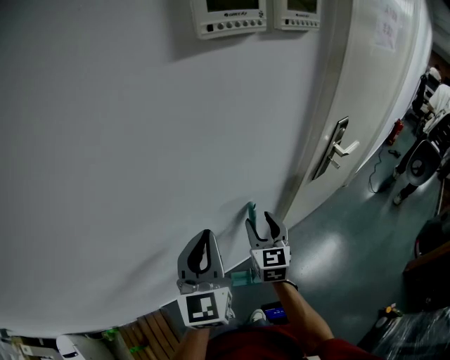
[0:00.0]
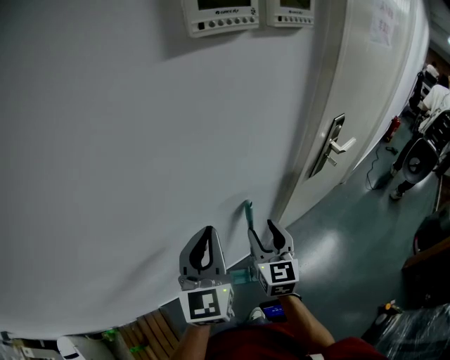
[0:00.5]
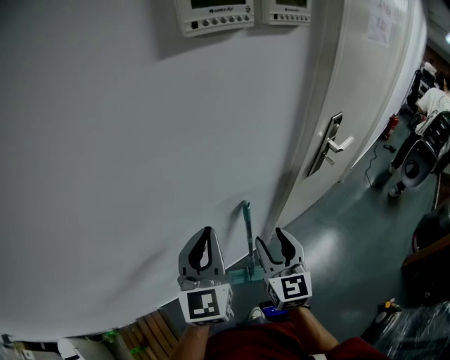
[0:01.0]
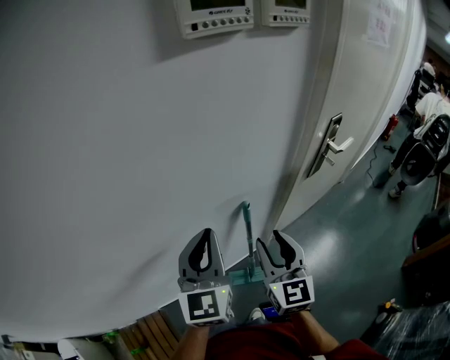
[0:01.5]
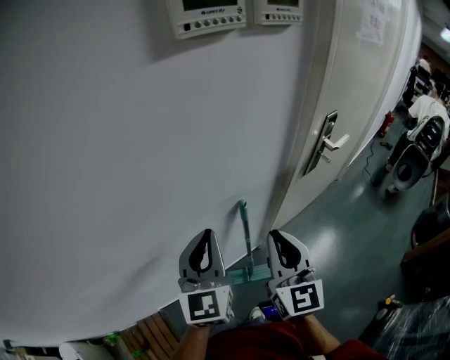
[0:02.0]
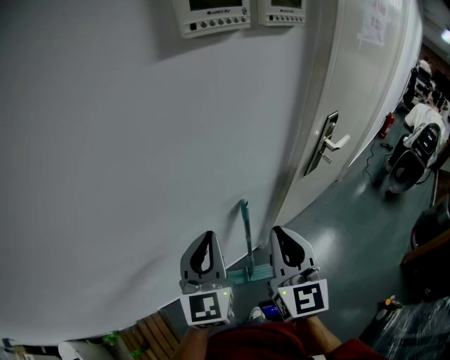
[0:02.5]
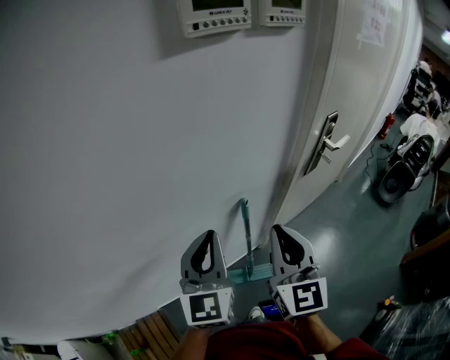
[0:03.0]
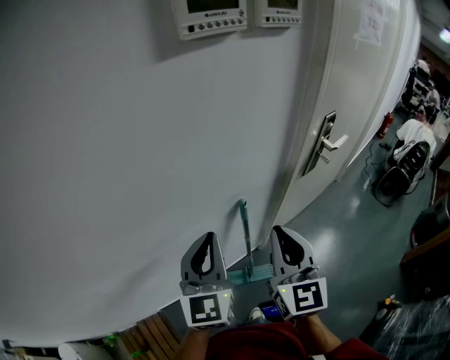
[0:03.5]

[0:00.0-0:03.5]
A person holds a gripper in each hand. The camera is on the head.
0:00.0 to 0:02.0: The right gripper goes approximately 15 cm upward and backward, and closes its fingers.
0:02.0 to 0:03.5: There are only small adjustments of the grippers.

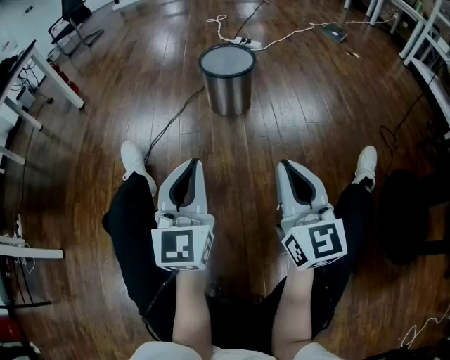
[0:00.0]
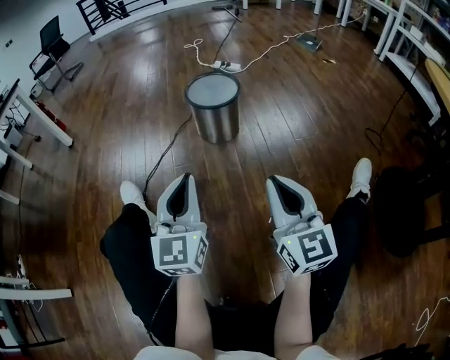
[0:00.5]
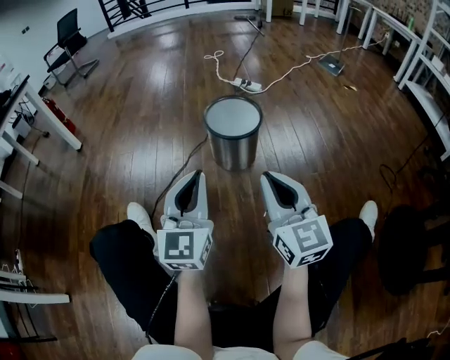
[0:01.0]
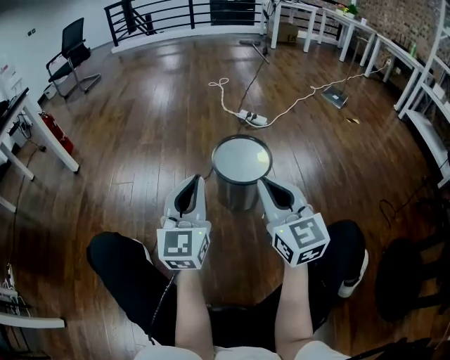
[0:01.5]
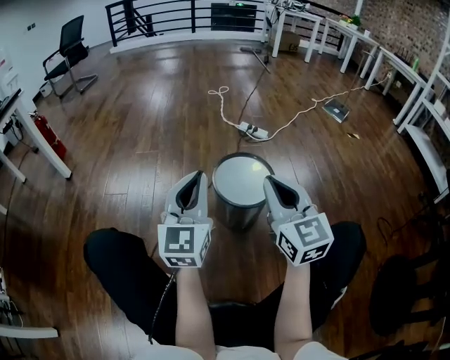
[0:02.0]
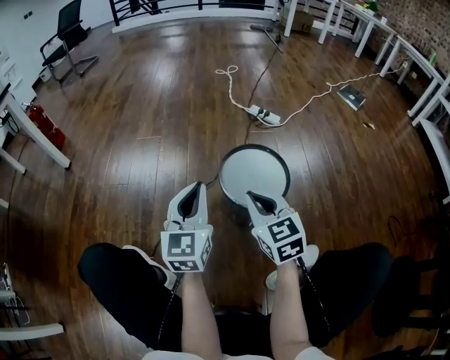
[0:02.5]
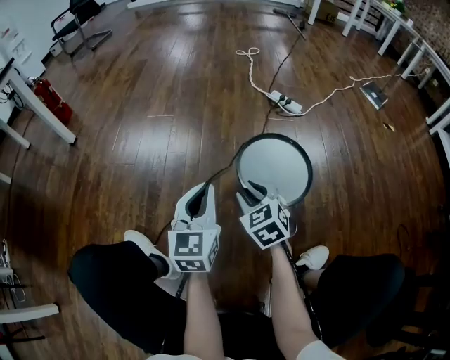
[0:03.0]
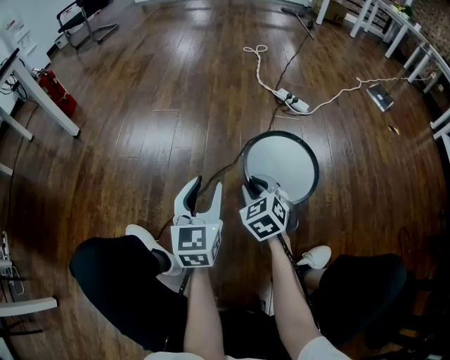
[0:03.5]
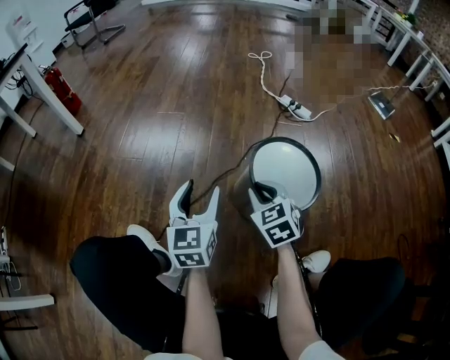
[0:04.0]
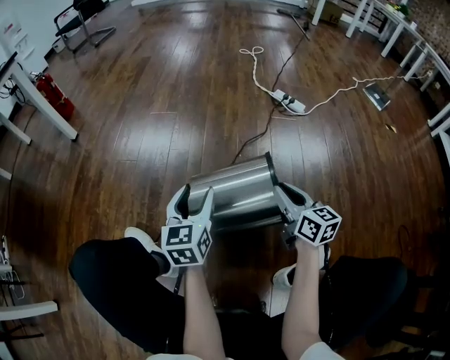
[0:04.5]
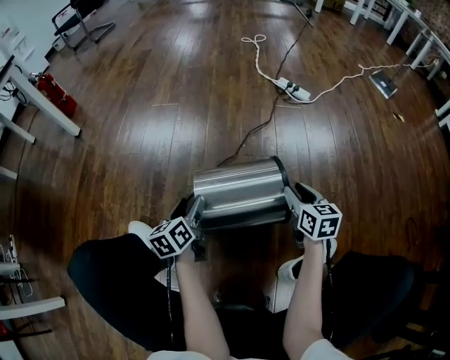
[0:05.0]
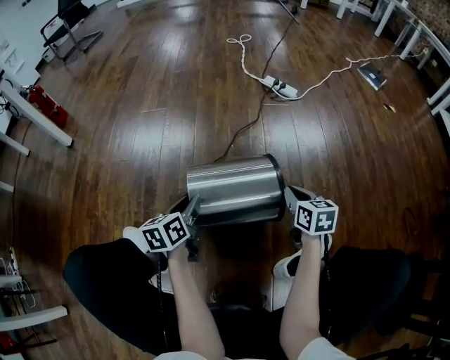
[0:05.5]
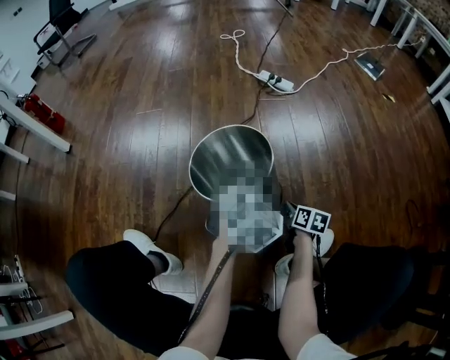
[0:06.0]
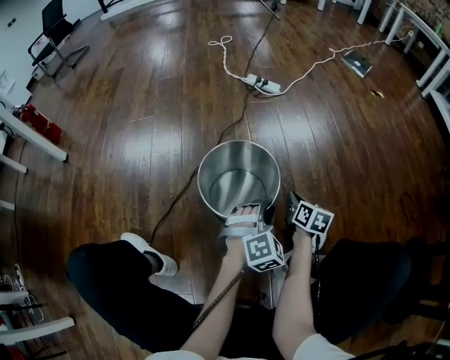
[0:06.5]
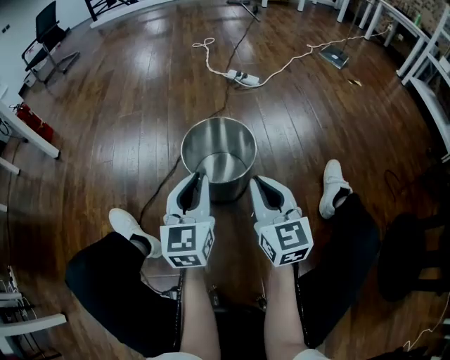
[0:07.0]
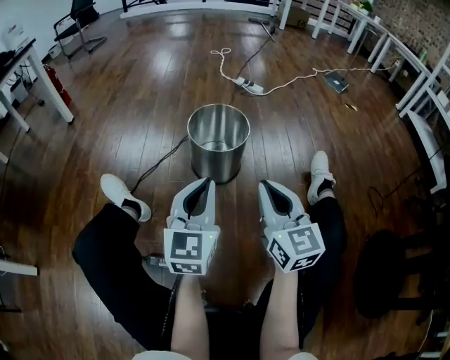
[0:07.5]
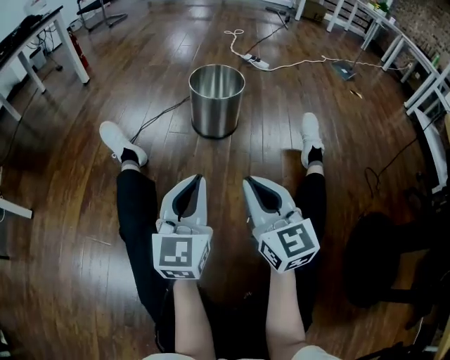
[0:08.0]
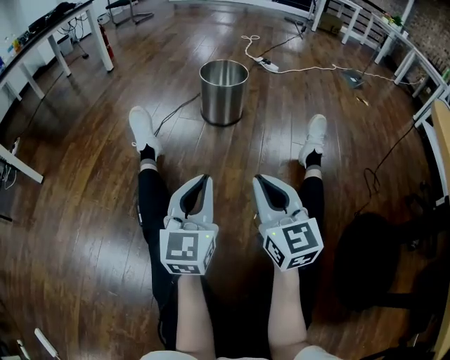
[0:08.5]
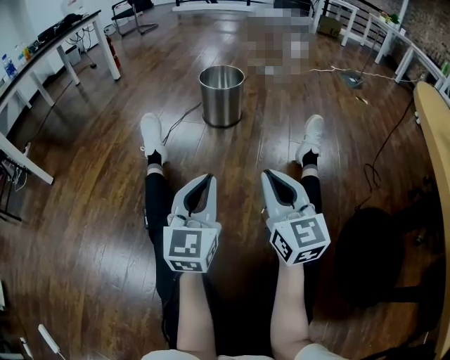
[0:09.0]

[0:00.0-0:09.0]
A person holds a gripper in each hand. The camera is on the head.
0:00.0 to 0:02.0: The two grippers go approximately 40 cm forward.
0:02.0 to 0:04.5: Both grippers move downward, roughly 20 cm. The left gripper turns by about 30 degrees, and opens. The right gripper rotates about 40 degrees.
0:04.5 to 0:07.0: The right gripper travels backward by approximately 15 cm, moves some 20 cm downward and comes back, and turns by some 30 degrees; the left gripper shifts some 20 cm to the right, backward and upward, and closes its fingers.
0:07.0 to 0:09.0: The two grippers travel together, backward, some 50 cm. The right gripper rotates some 20 degrees.

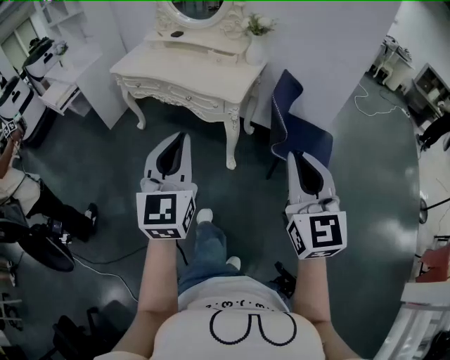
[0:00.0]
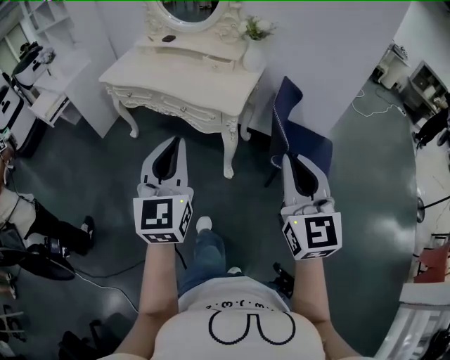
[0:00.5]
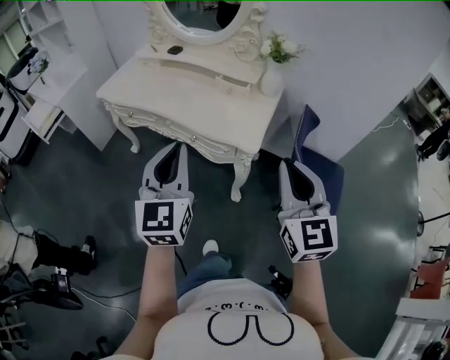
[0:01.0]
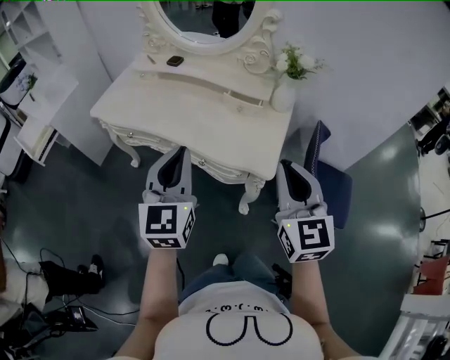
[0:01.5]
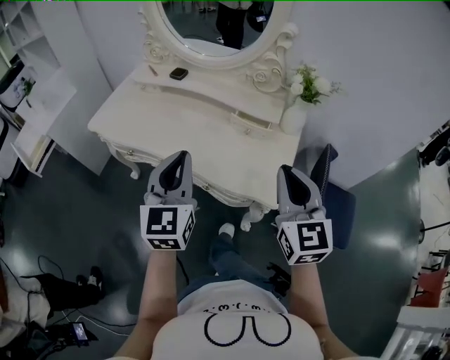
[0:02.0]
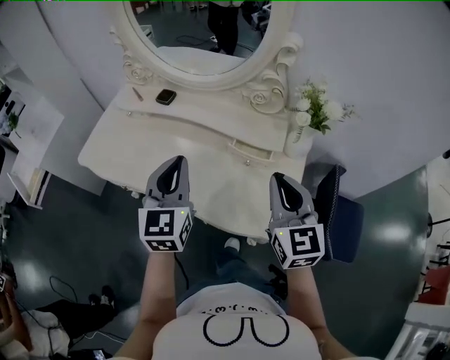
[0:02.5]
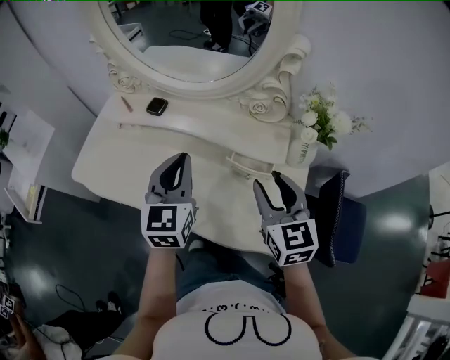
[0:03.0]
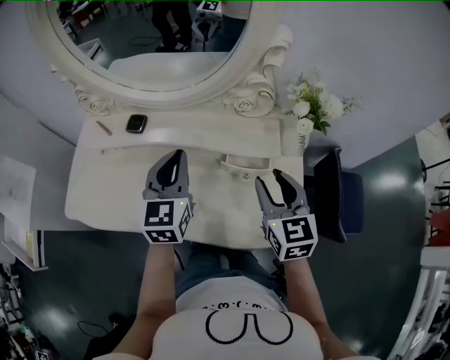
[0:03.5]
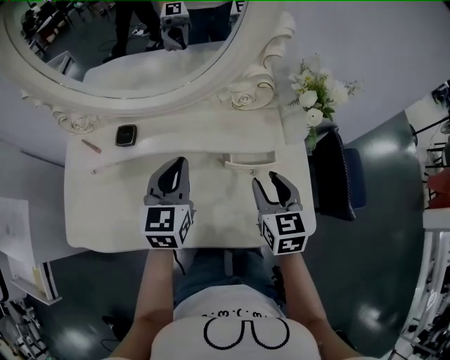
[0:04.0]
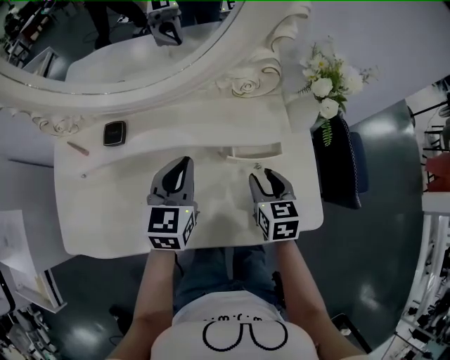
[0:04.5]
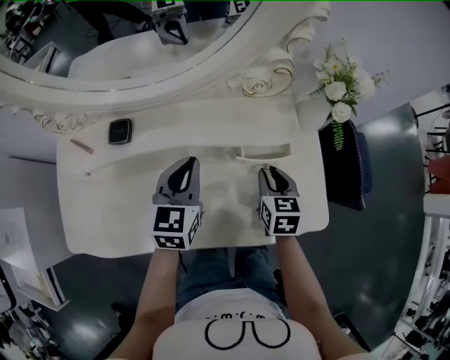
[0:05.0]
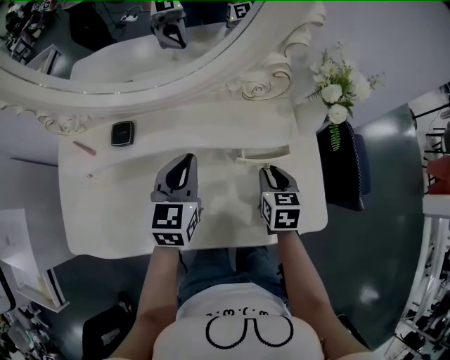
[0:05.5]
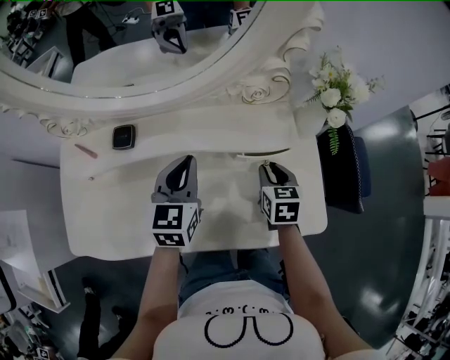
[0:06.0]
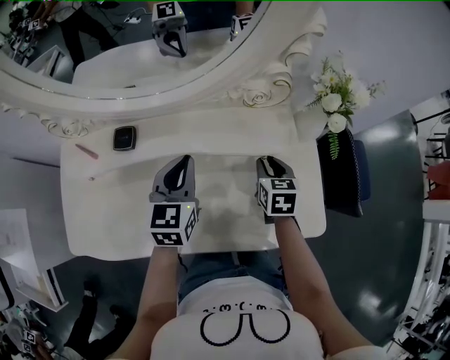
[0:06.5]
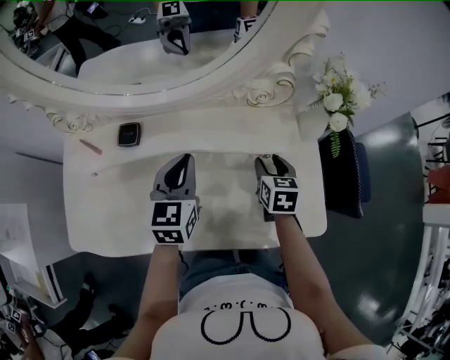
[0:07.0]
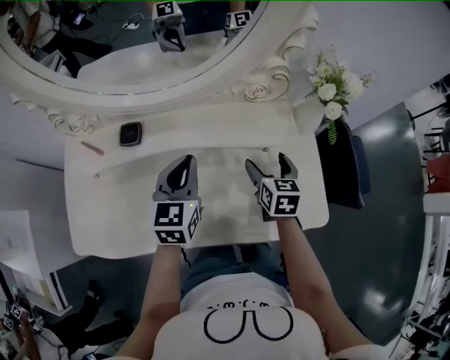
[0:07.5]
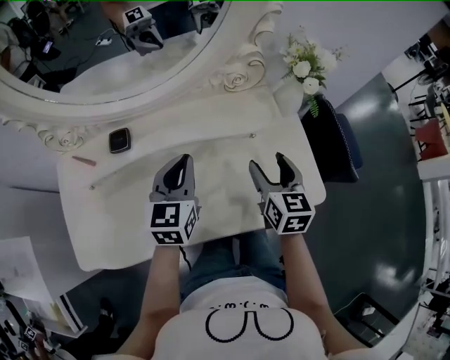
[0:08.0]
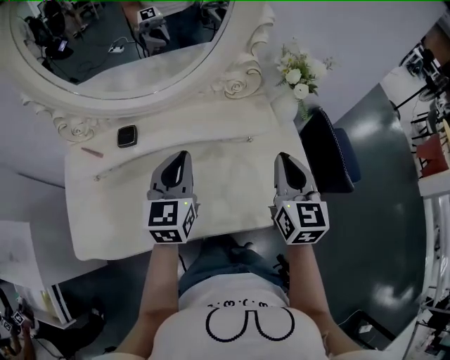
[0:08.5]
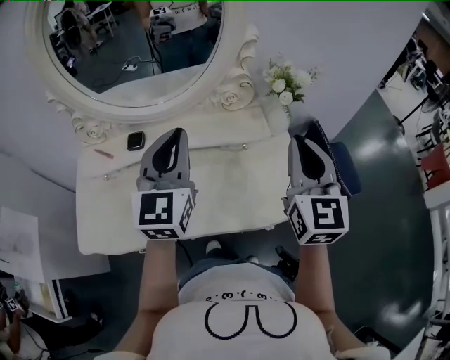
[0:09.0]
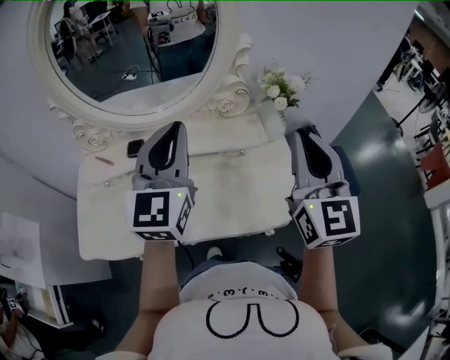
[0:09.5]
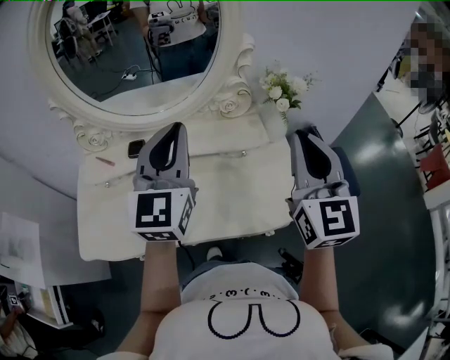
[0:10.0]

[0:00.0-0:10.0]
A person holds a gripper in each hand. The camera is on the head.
0:00.0 to 0:02.0: Both grippers are carried forward, some 50 cm.
0:02.0 to 0:04.0: The right gripper moves approximately 30 cm, changes its angle by about 40 degrees, and opens its fingers, while the left gripper moves roughly 35 cm, and turns by about 30 degrees.
0:04.0 to 0:06.0: The right gripper shifts approximately 10 cm downward; the left gripper moves about 5 cm.
0:06.0 to 0:08.0: The right gripper moves upward and backward, some 10 cm, turns by about 20 degrees, and opens.
0:08.0 to 0:10.0: Both grippers move upward, about 25 cm. The left gripper rotates approximately 30 degrees. Meanwhile the right gripper angles its fingers upward, by about 30 degrees, and closes.

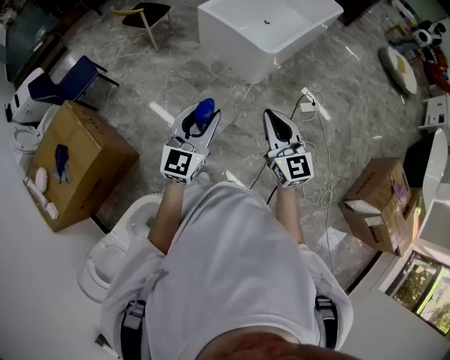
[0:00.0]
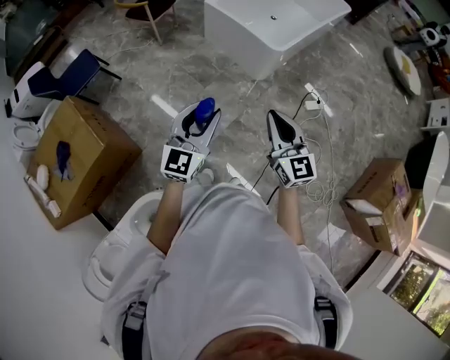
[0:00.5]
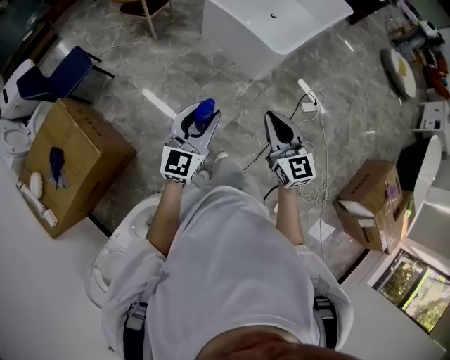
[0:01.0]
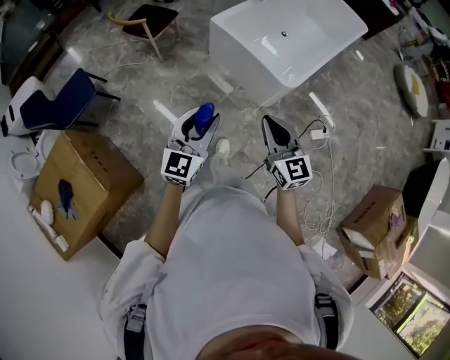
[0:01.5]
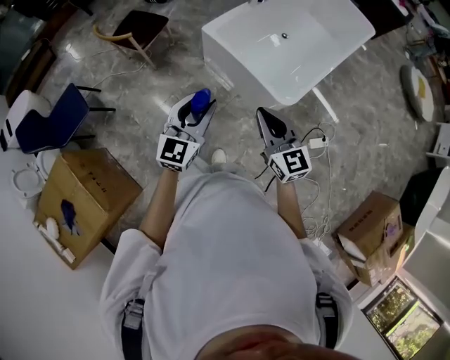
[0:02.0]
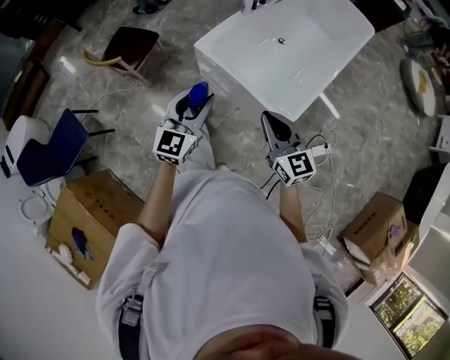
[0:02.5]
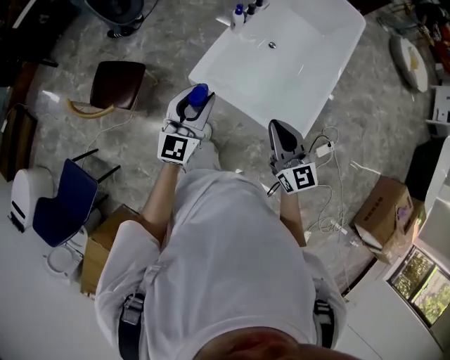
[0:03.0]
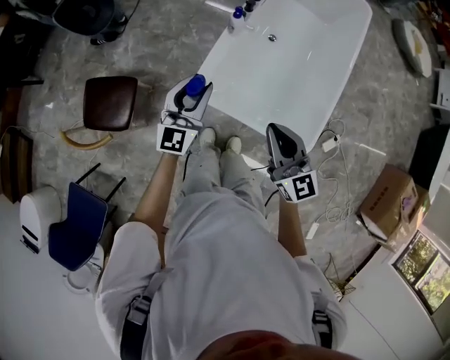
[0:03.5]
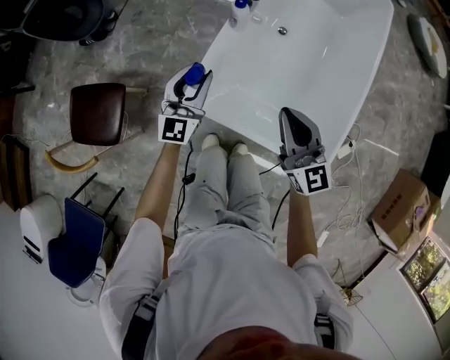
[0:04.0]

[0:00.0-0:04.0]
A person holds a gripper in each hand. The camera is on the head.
0:00.0 to 0:02.0: The two grippers travel together, forward, about 50 cm.
0:02.0 to 0:04.0: The two grippers travel together, forward, approximately 60 cm. The right gripper turns by roughly 20 degrees.
